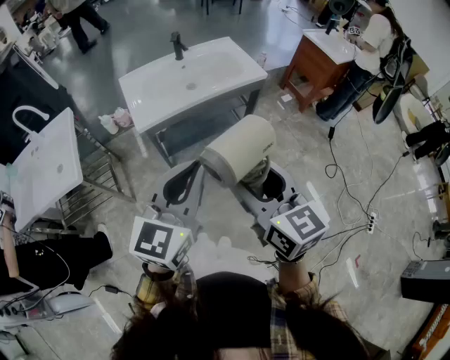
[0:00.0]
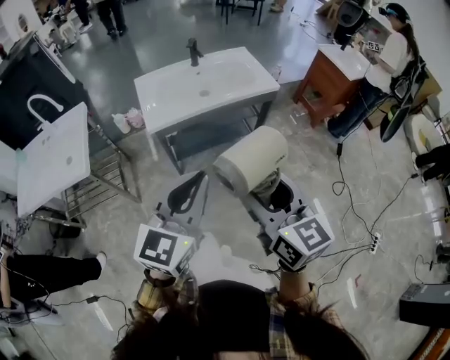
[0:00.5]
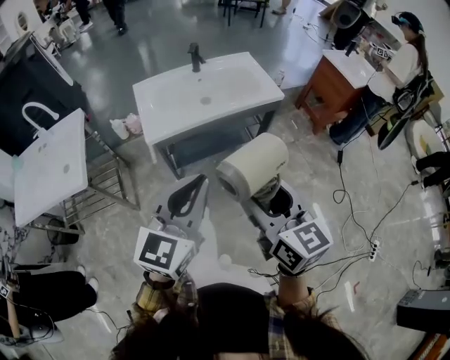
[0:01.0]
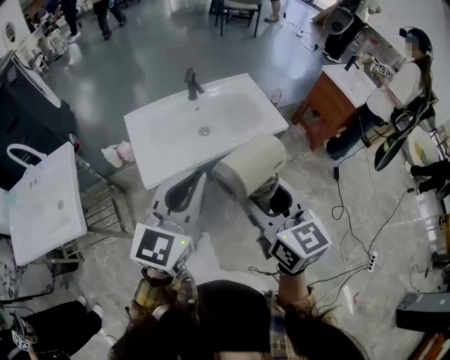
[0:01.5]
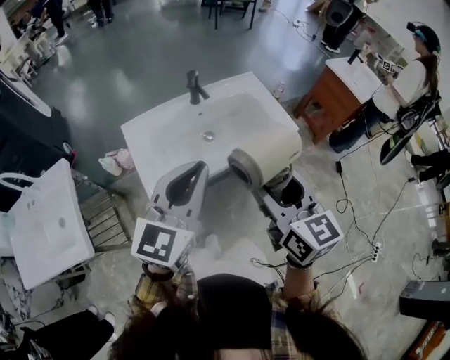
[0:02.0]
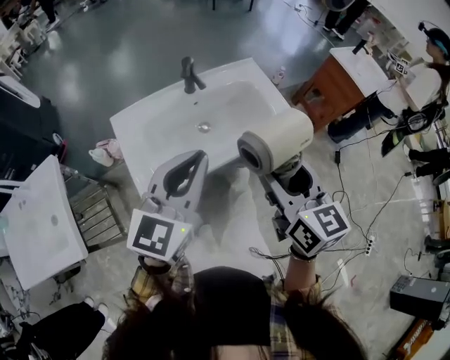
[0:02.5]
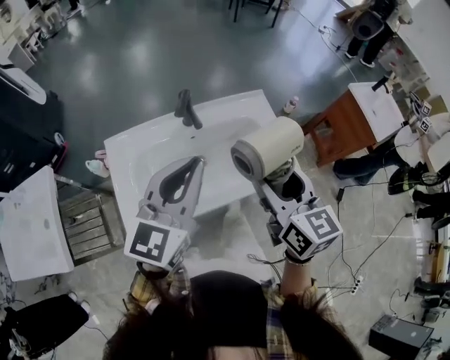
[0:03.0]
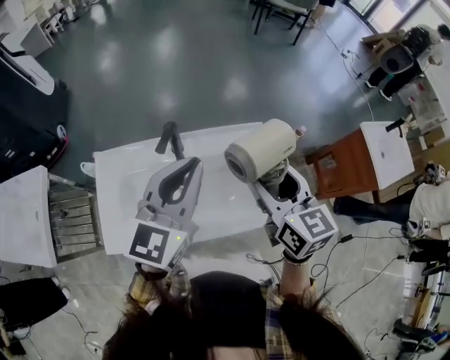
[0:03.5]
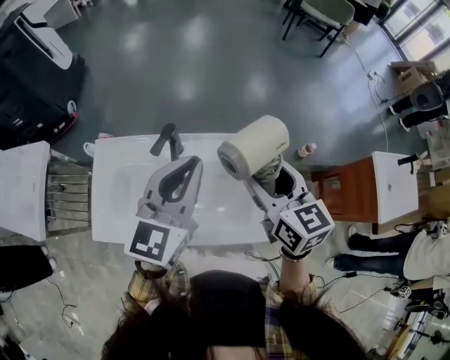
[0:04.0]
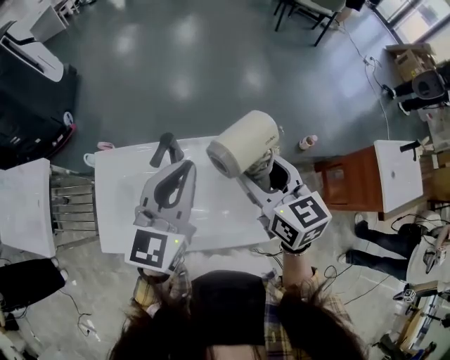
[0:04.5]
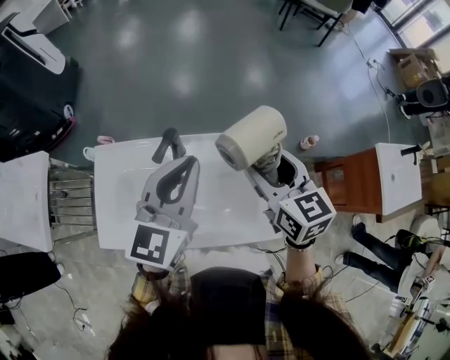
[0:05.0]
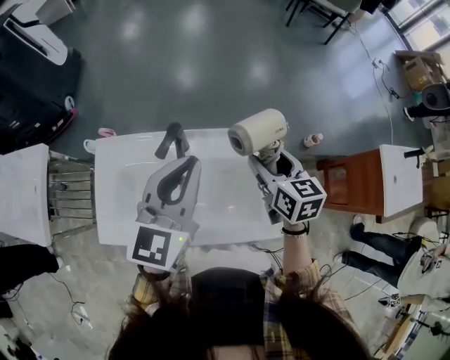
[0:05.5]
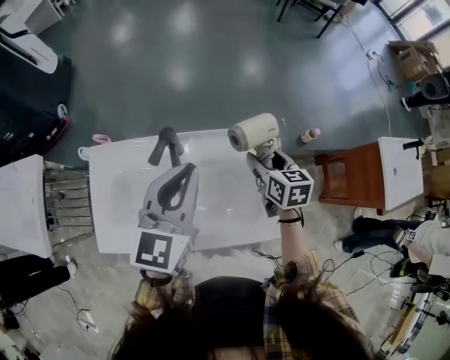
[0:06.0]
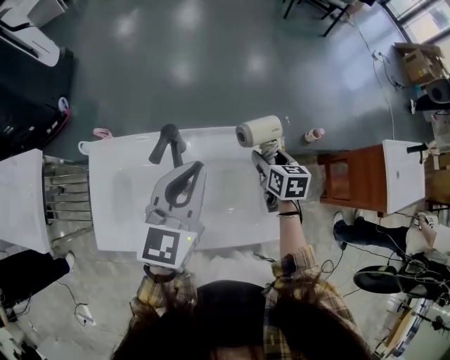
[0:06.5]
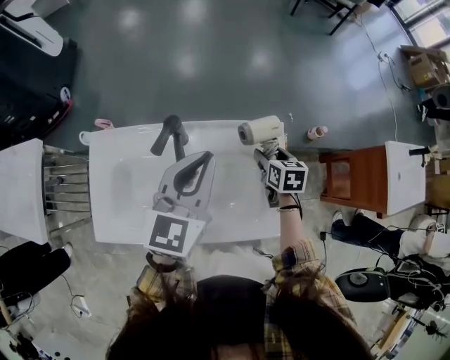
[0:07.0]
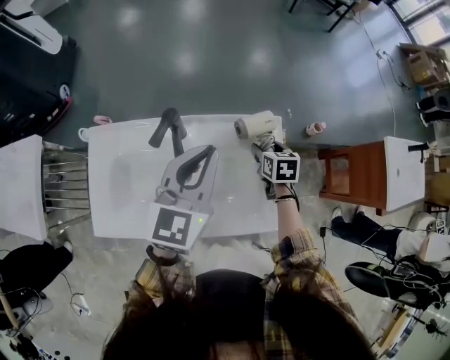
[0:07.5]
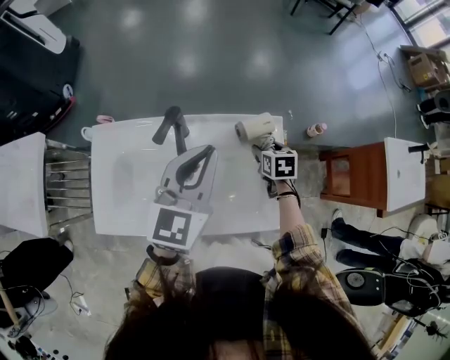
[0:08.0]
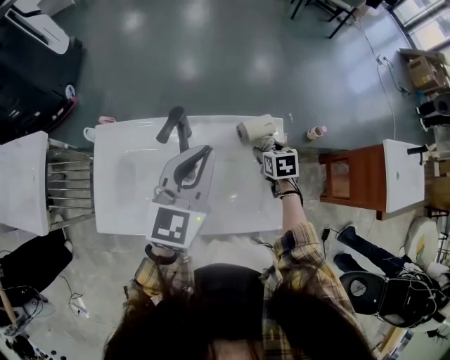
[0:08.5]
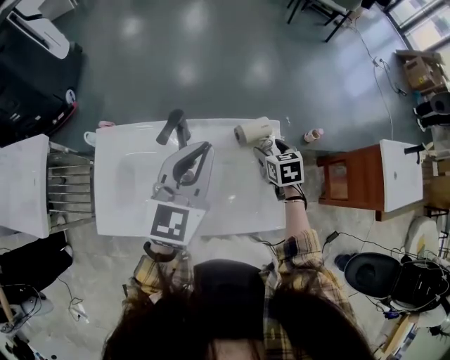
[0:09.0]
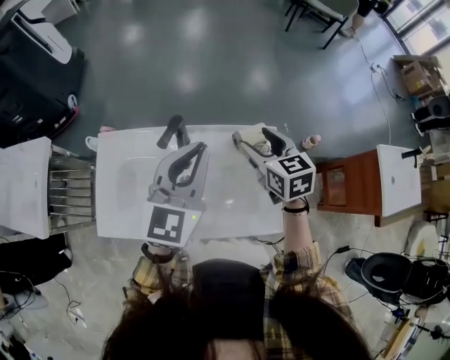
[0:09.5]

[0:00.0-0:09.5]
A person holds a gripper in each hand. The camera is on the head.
0:00.0 to 0:02.0: Both grippers move forward, some 30 cm.
0:02.0 to 0:04.0: The left gripper ends up about 35 cm from where it was, and changes its angle by approximately 30 degrees. The right gripper ends up about 40 cm from where it was, and turns by some 30 degrees.
0:04.0 to 0:05.5: The right gripper travels downward and forward by some 10 cm.
0:05.5 to 0:07.5: The right gripper shifts roughly 20 cm downward, and changes its angle by about 20 degrees. The left gripper goes some 5 cm downward.
0:07.5 to 0:09.5: The left gripper ends up approximately 5 cm from where it was. Meanwhile the right gripper goes roughly 20 cm upward, and swivels about 30 degrees.

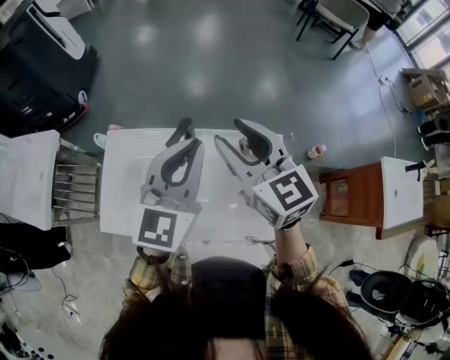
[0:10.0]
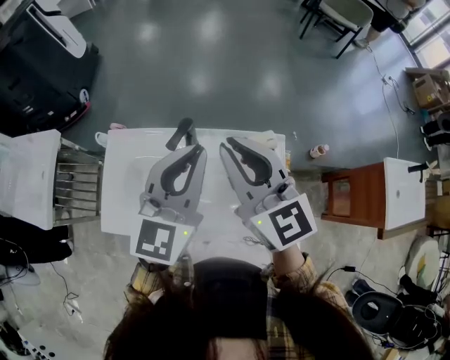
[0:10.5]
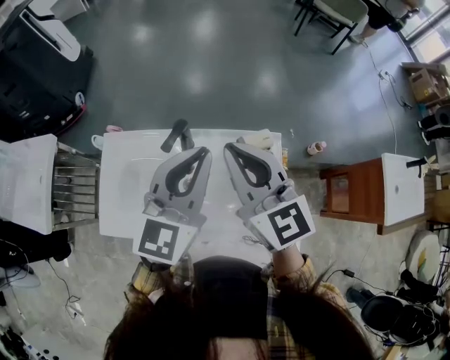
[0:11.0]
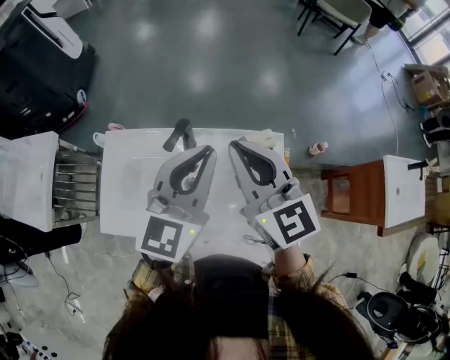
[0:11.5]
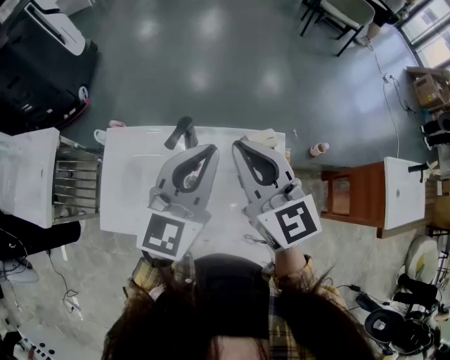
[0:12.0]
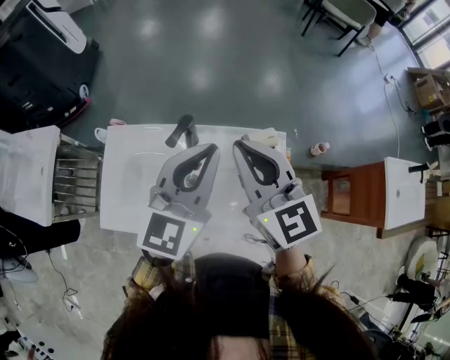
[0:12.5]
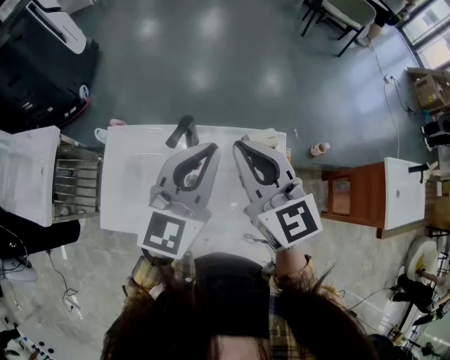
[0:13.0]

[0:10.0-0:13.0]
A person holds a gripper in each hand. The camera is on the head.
0:10.0 to 0:11.5: The right gripper closes up.
0:11.5 to 0:13.0: Neither gripper changes place.

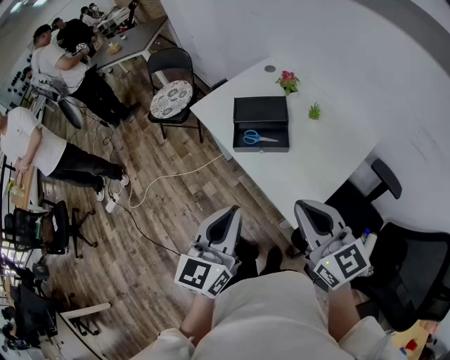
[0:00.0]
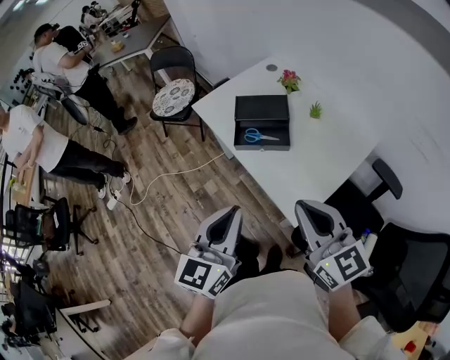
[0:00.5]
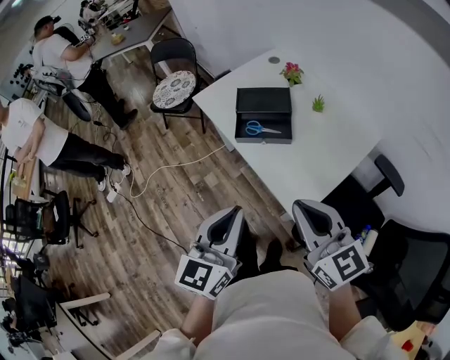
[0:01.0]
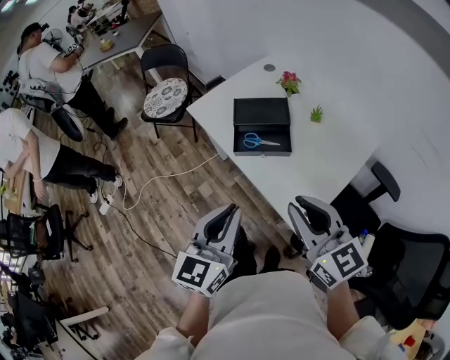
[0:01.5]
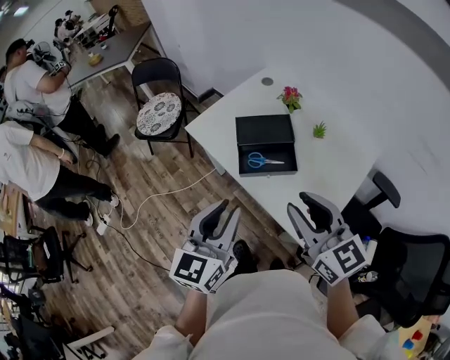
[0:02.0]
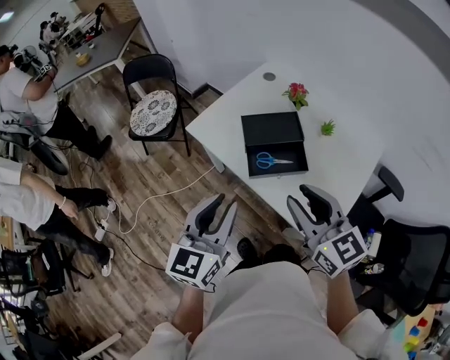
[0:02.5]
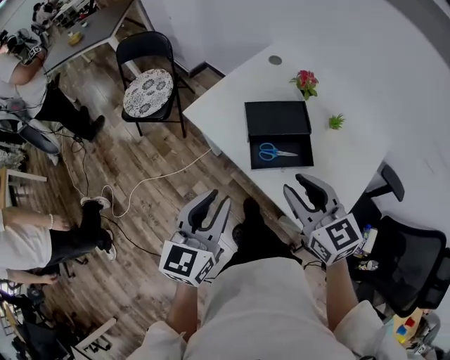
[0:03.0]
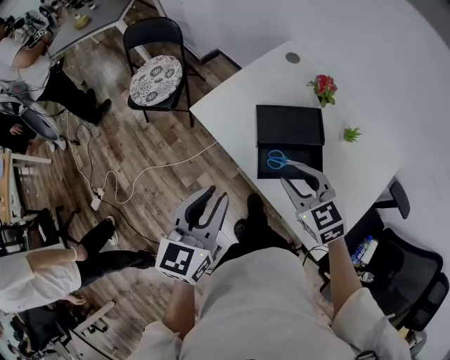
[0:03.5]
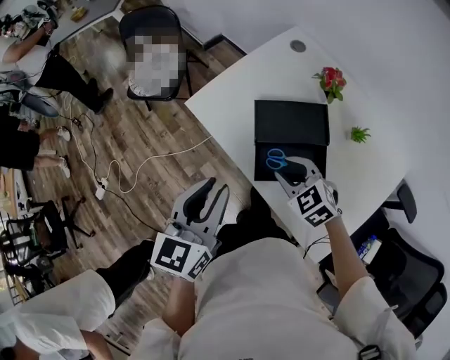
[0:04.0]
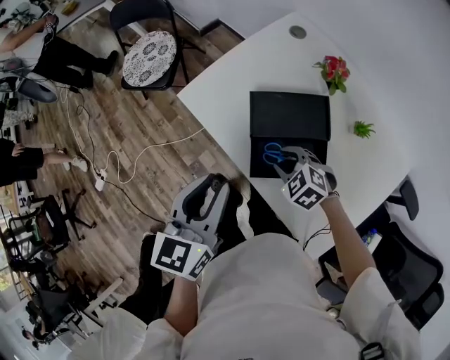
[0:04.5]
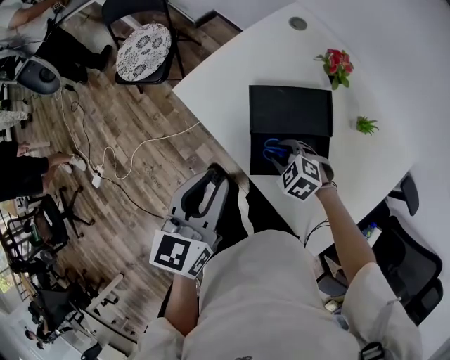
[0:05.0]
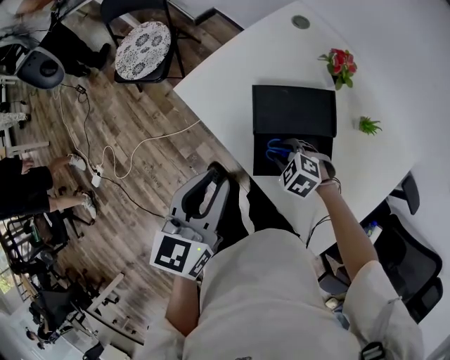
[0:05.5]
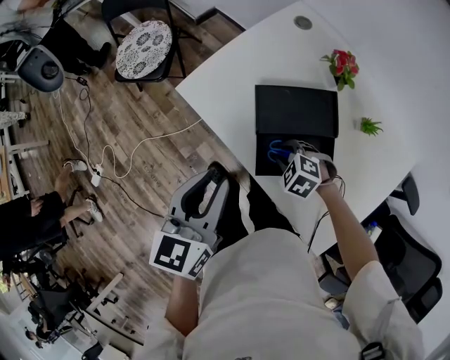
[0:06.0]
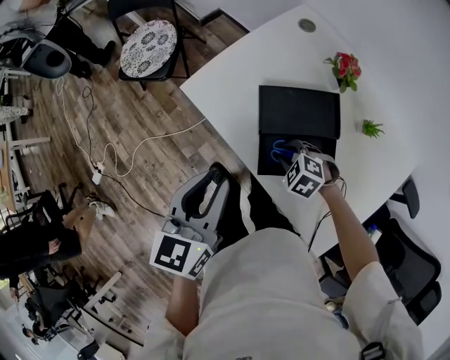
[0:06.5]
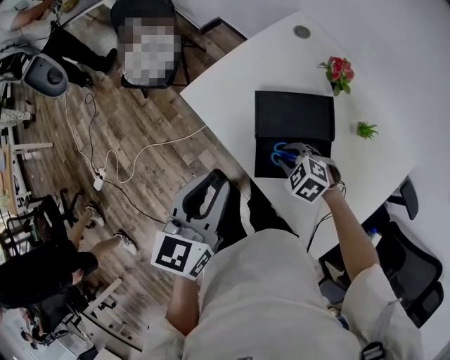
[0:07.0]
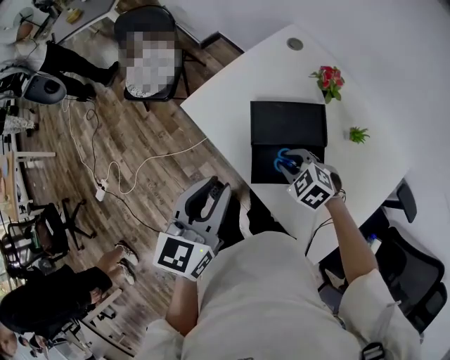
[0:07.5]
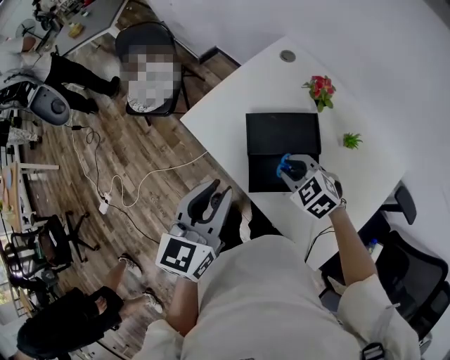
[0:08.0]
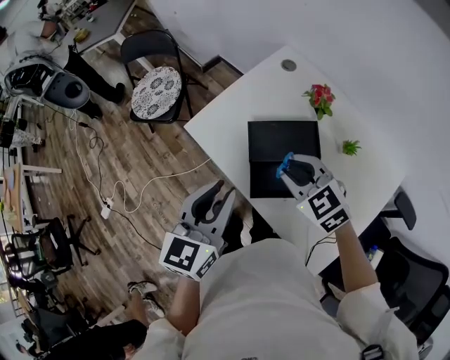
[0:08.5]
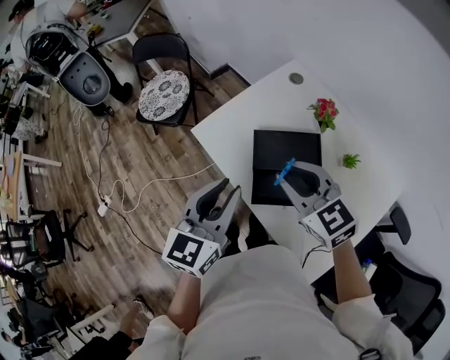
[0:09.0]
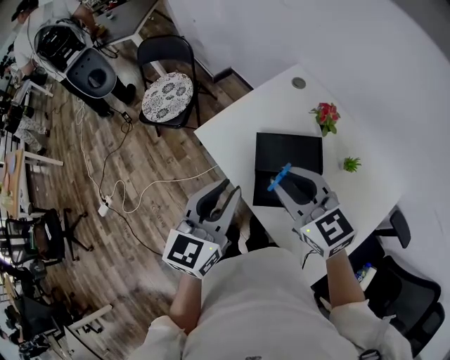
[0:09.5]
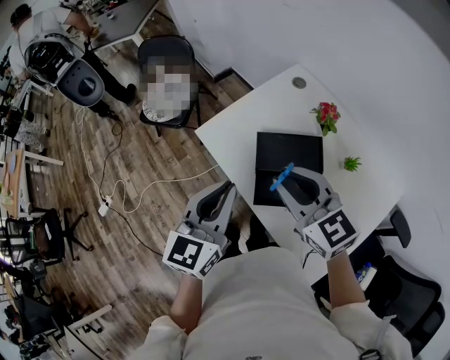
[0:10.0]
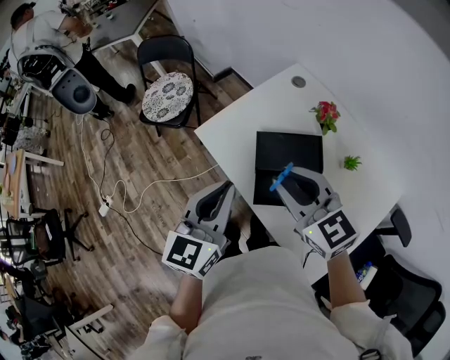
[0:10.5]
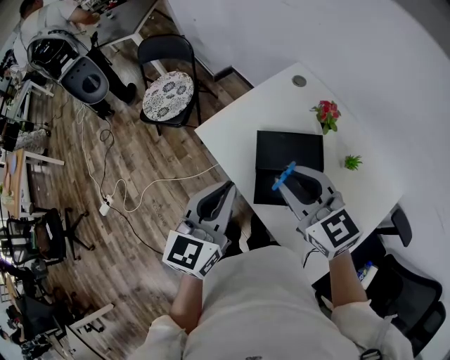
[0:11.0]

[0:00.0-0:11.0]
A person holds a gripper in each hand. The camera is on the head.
0:00.0 to 0:02.0: The two grippers go approximately 15 cm forward and to the left. The right gripper opens. Meanwhile the left gripper opens up.
0:02.0 to 0:03.5: The left gripper goes some 15 cm forward, to the left and downward. The right gripper shifts approximately 25 cm forward and downward, and turns by about 30 degrees.
0:03.5 to 0:05.5: The right gripper travels downward by about 20 cm, and tips its fingers downward by about 30 degrees. The left gripper goes roughly 5 cm forward.
0:05.5 to 0:07.5: The right gripper moves upward, some 5 cm.
0:07.5 to 0:09.0: The right gripper goes about 20 cm upward, and tips its fingers upward by approximately 30 degrees.
0:09.0 to 0:11.0: The grippers stay close to where they were, moving slightly.

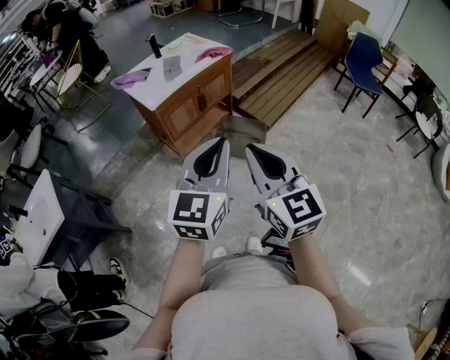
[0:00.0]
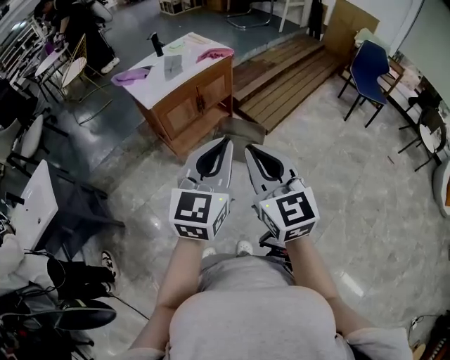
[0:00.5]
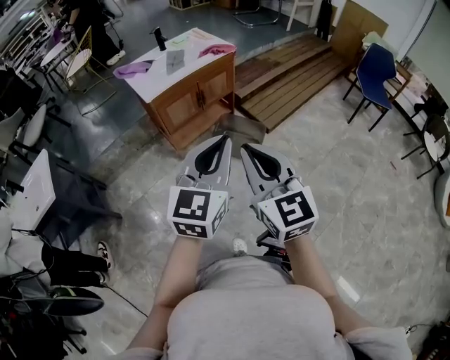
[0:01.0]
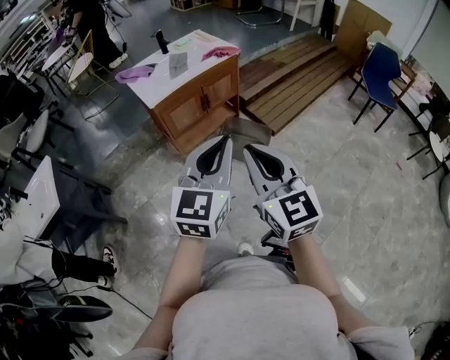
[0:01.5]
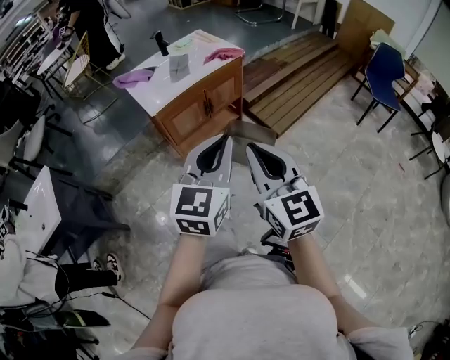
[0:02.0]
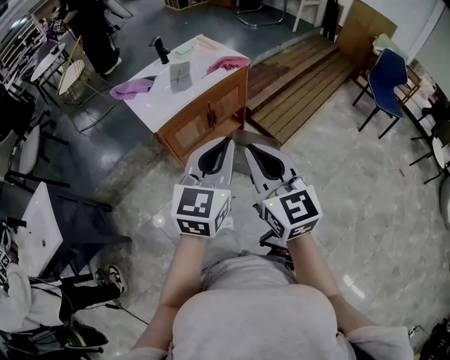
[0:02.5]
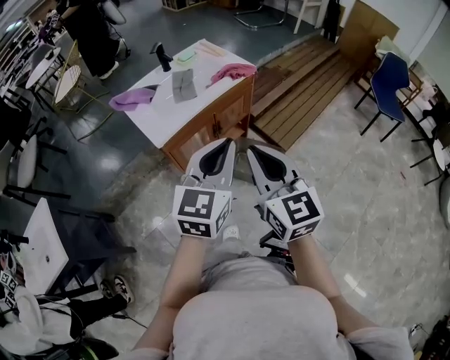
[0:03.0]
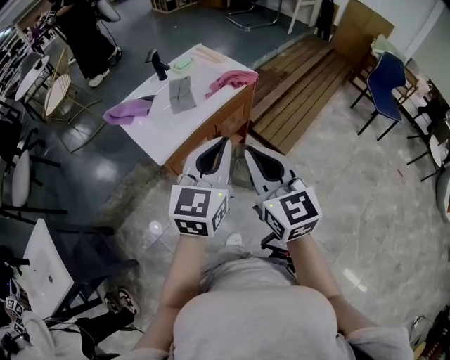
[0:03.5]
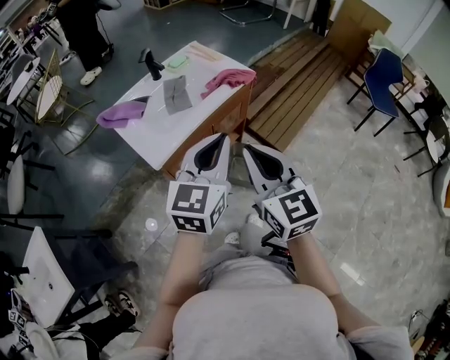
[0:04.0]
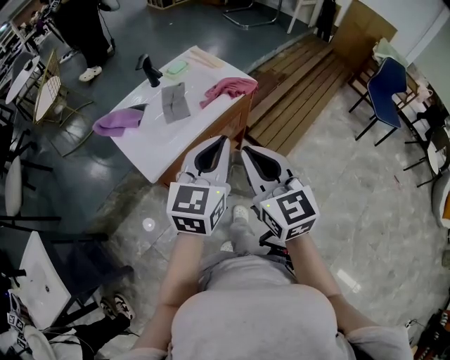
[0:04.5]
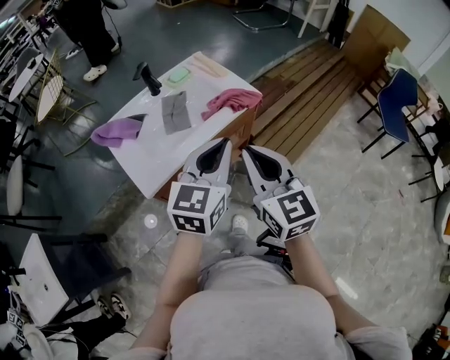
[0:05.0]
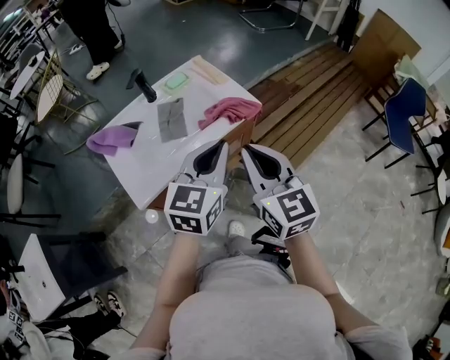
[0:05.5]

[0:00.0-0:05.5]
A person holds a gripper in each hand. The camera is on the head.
0:00.0 to 0:02.0: Both grippers move forward, some 10 cm.
0:02.0 to 0:03.5: The grippers both shift forward and to the left by roughly 25 cm.
0:03.5 to 0:05.5: Both grippers travel together forward, approximately 20 cm.
